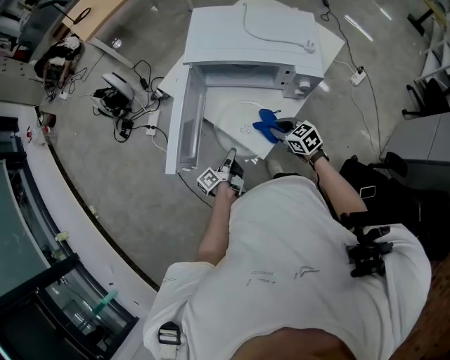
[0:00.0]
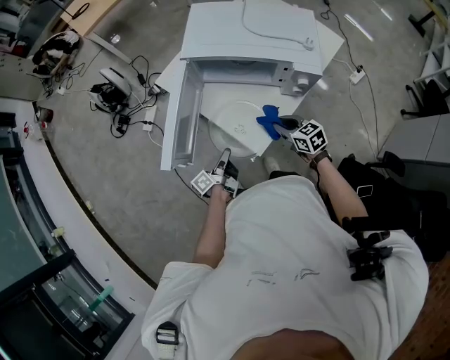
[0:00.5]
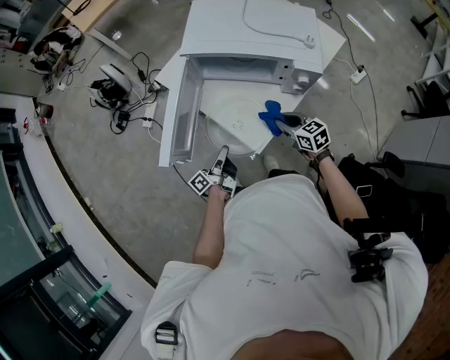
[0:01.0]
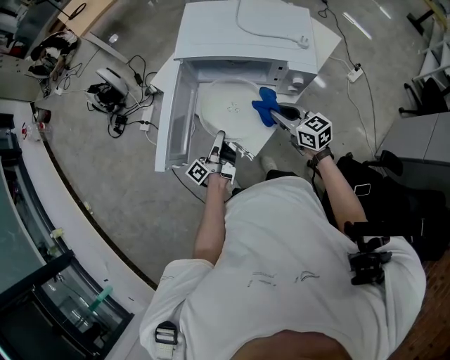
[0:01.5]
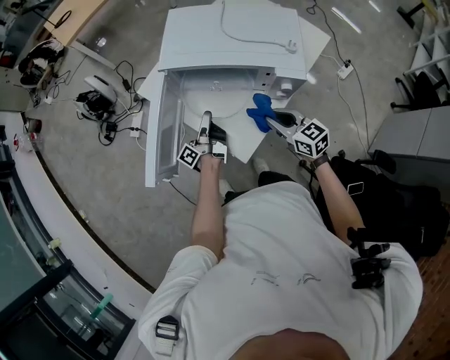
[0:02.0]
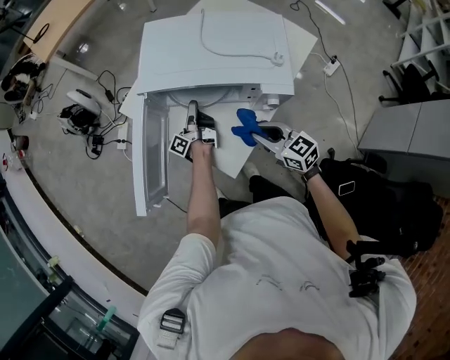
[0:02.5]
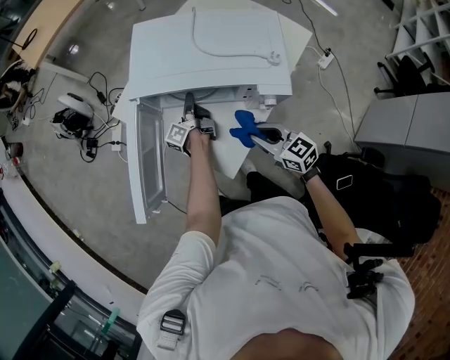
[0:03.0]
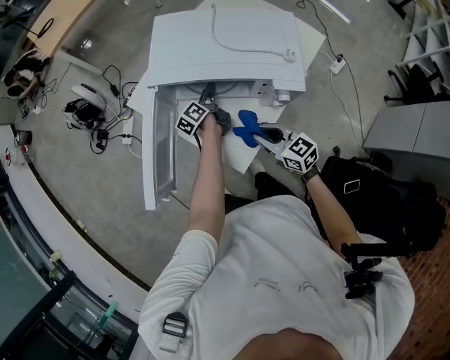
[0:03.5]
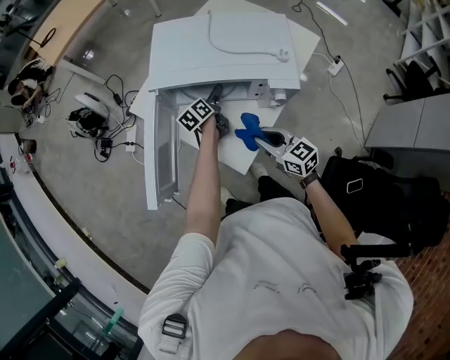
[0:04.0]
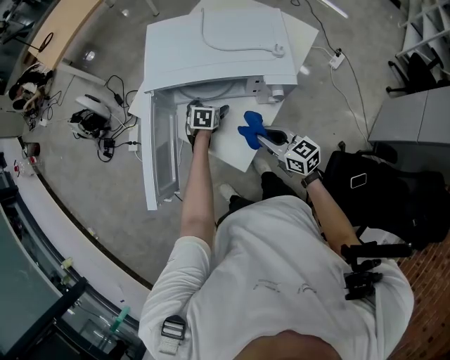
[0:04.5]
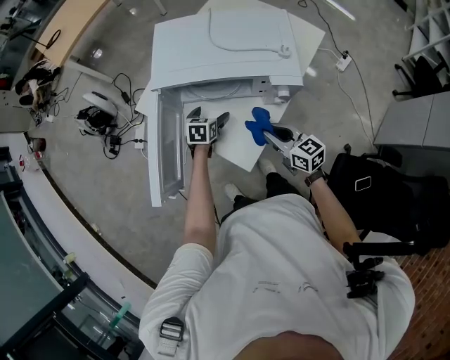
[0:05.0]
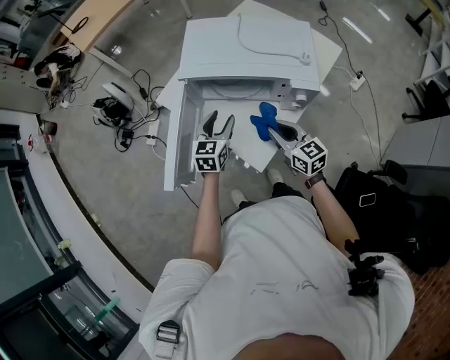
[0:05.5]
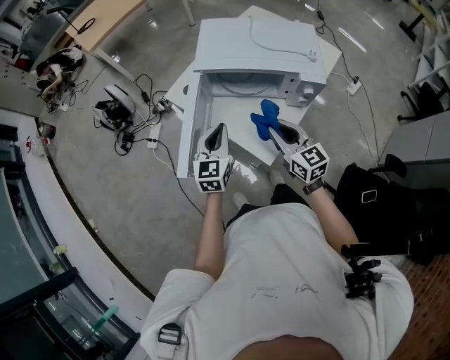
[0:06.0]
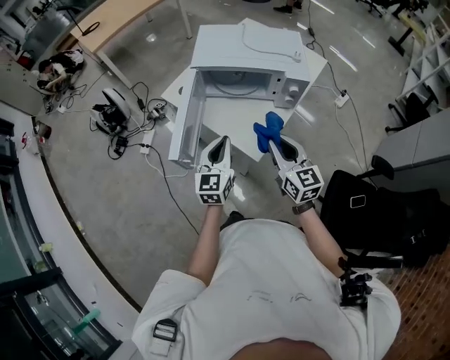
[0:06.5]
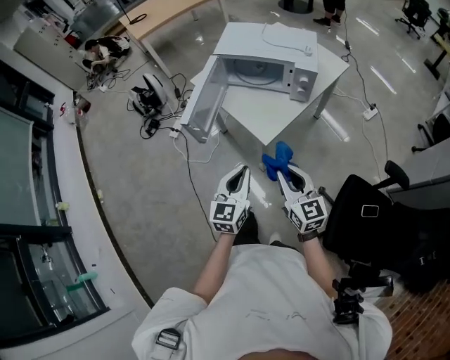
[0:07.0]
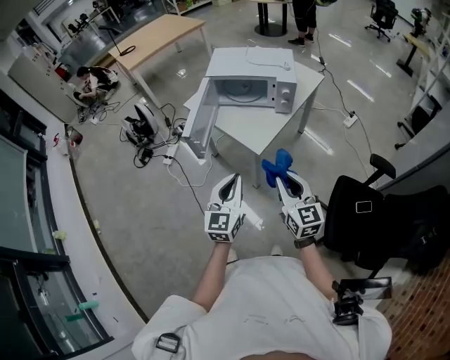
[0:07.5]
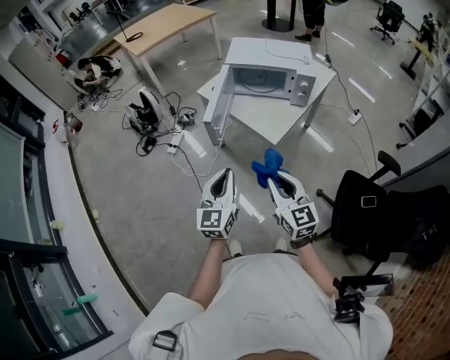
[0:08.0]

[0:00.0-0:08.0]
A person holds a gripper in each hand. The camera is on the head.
0:00.0 to 0:02.0: The right gripper heads upward and to the right, covering some 10 cm; the left gripper moves forward and upward, some 15 cm, and swivels about 20 degrees.
0:02.0 to 0:04.0: The left gripper moves forward and to the right, about 15 cm, points its fingers roughly 40 degrees further downward, and opens its fingers.
0:04.0 to 0:06.0: The left gripper shifts roughly 30 cm backward, upward and to the left, twists some 50 degrees clockwise, seen from behind, and closes; the right gripper heads upward and to the left, covering about 10 cm.
0:06.0 to 0:08.0: The two grippers go approximately 35 cm backward.

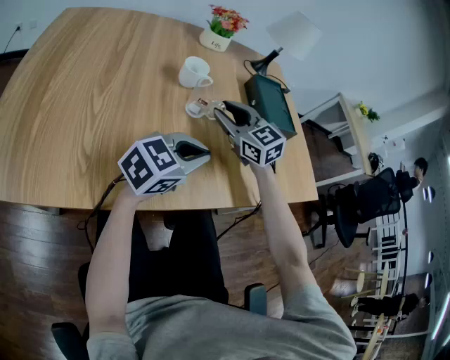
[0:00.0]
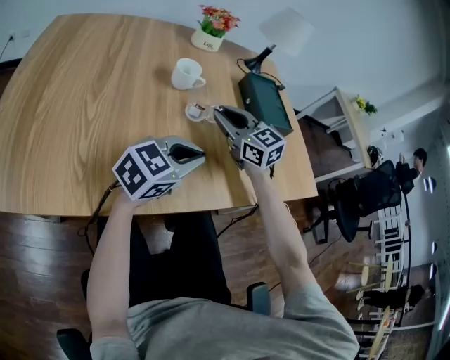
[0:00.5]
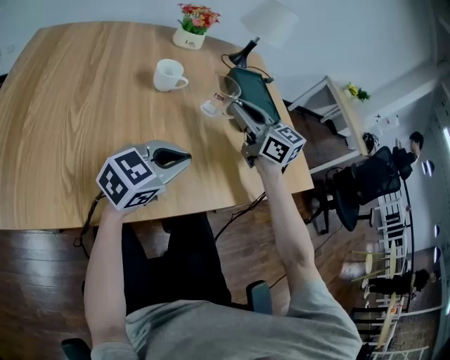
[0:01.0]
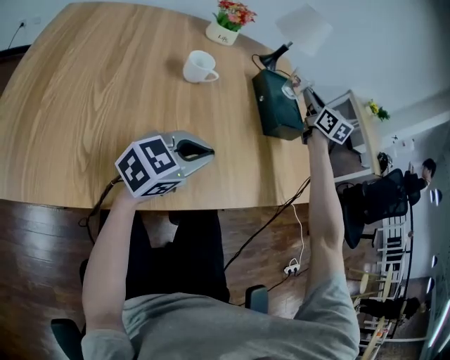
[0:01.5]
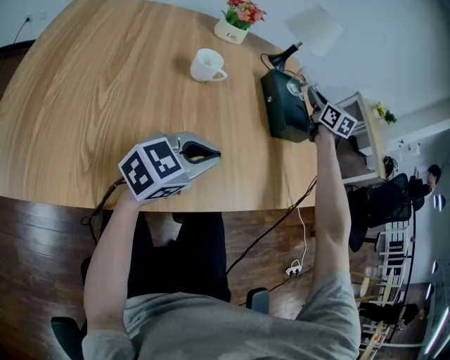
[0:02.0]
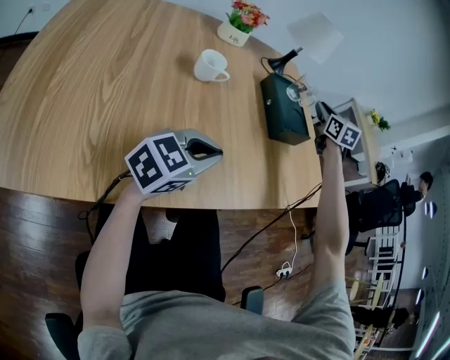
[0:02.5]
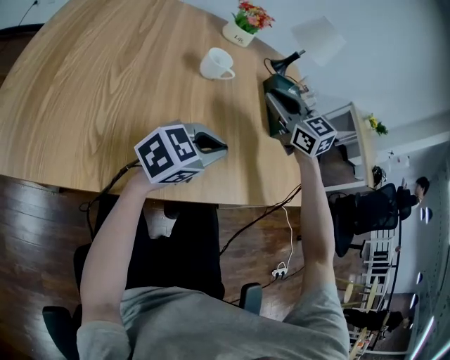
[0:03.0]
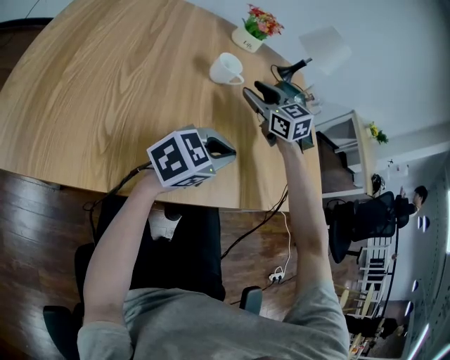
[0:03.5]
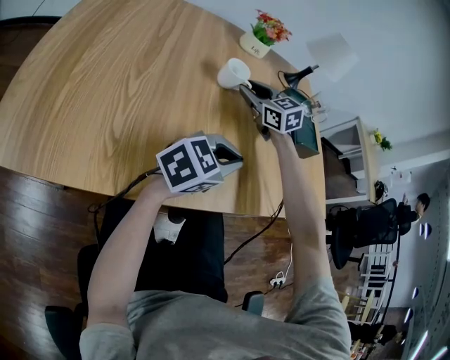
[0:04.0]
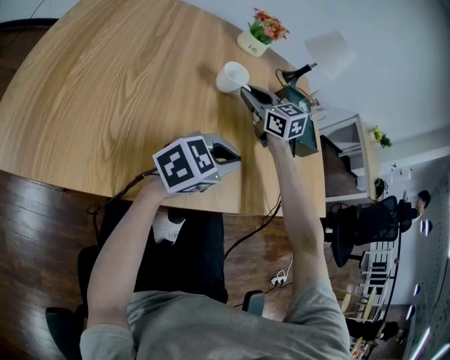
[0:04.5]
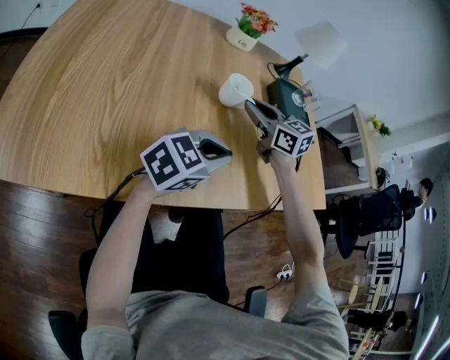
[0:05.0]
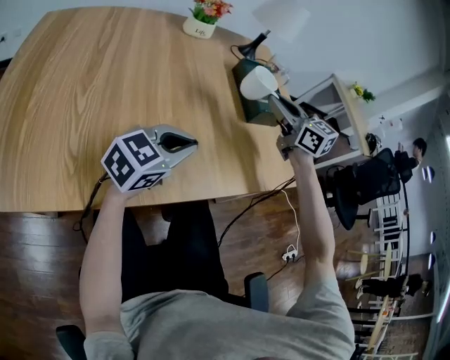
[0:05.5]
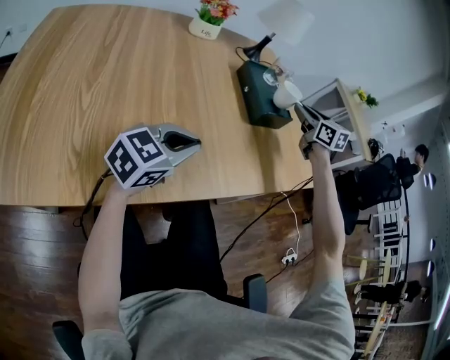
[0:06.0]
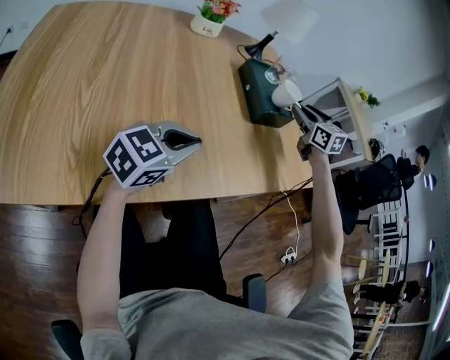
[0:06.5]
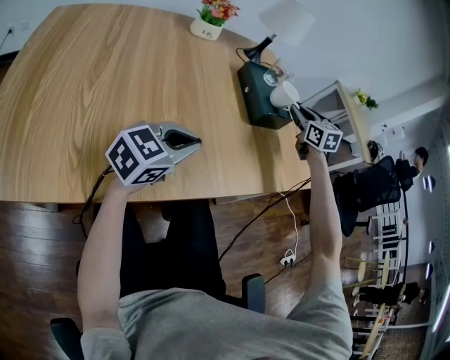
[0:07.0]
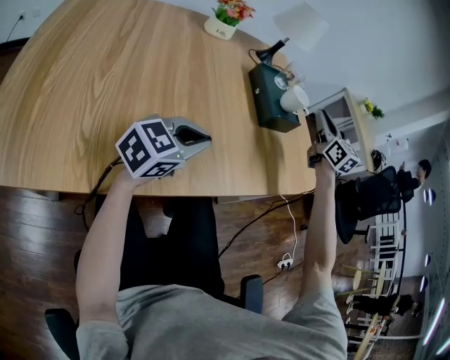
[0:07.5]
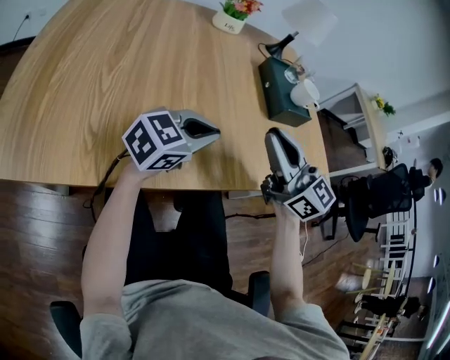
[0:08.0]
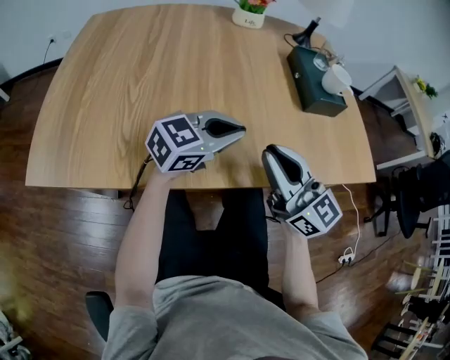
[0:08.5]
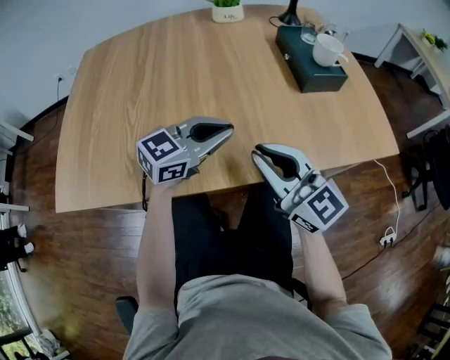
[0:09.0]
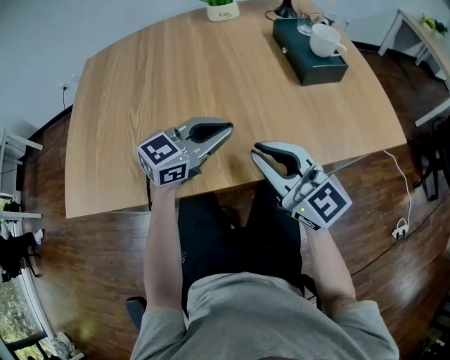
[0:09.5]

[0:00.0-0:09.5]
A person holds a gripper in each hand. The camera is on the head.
0:00.0 to 0:02.0: The right gripper travels forward and to the right by some 30 cm, and rotates roughly 30 degrees.
0:02.0 to 0:04.0: The right gripper heads to the left and backward, covering some 30 cm, and turns by some 40 degrees.
0:04.0 to 0:05.5: The right gripper heads to the right and upward, covering about 25 cm, and changes its angle by about 30 degrees.
0:05.5 to 0:07.5: The right gripper moves to the right and forward, some 15 cm, and rotates some 20 degrees.
0:07.5 to 0:09.5: The right gripper goes some 35 cm backward and to the left, and rotates about 40 degrees.

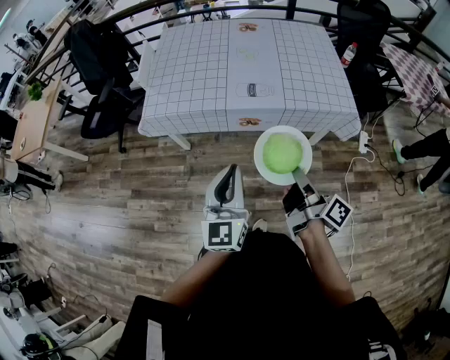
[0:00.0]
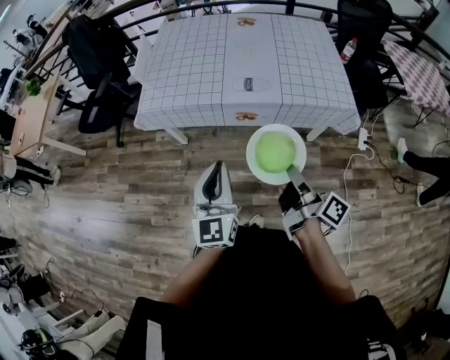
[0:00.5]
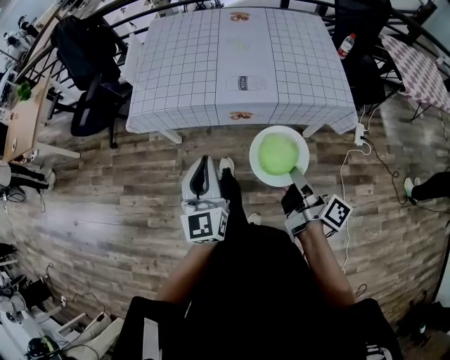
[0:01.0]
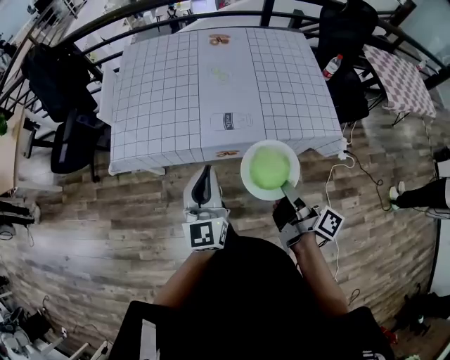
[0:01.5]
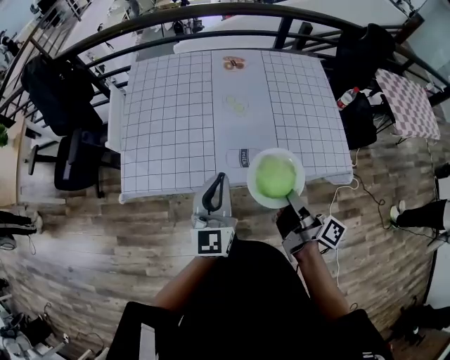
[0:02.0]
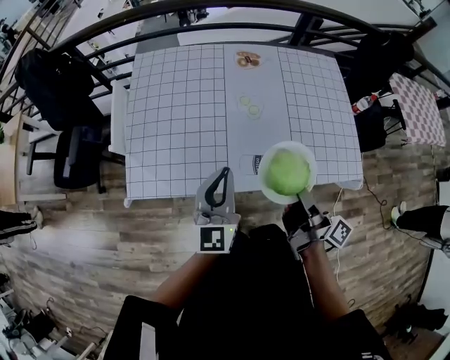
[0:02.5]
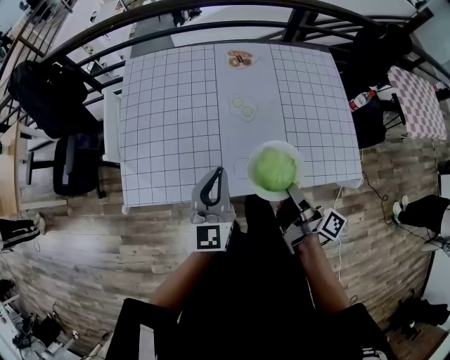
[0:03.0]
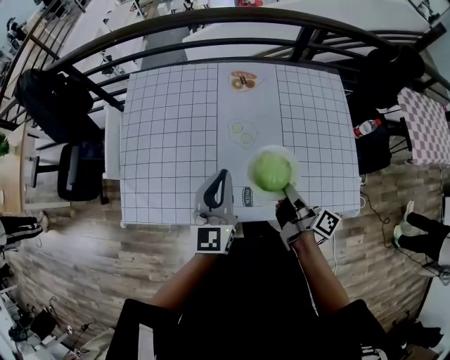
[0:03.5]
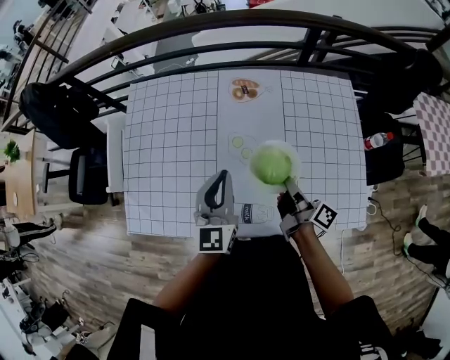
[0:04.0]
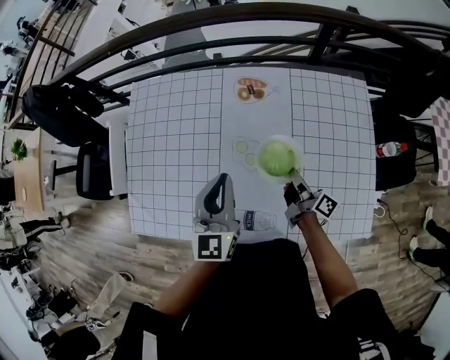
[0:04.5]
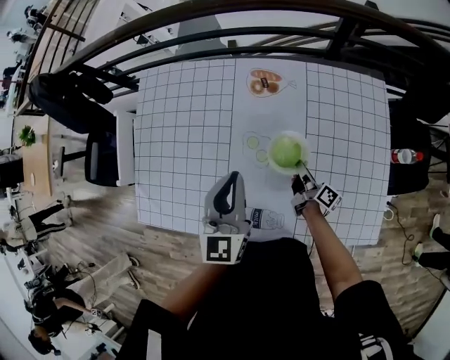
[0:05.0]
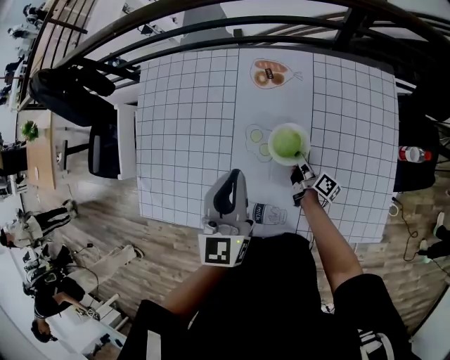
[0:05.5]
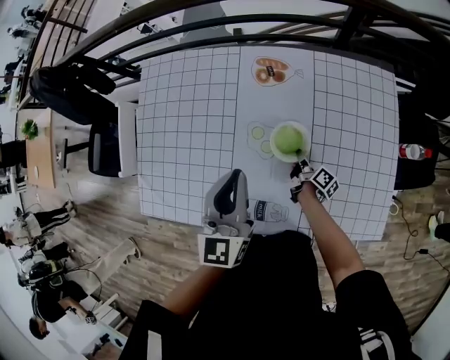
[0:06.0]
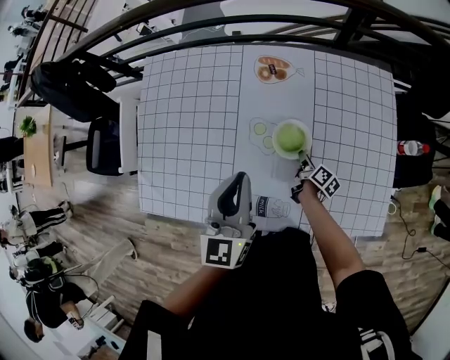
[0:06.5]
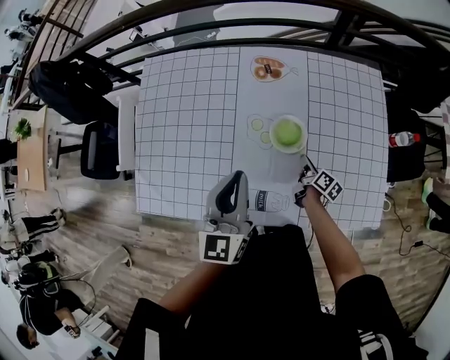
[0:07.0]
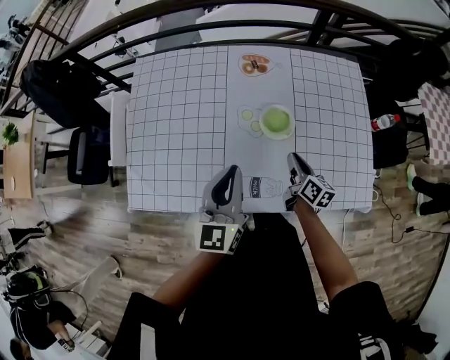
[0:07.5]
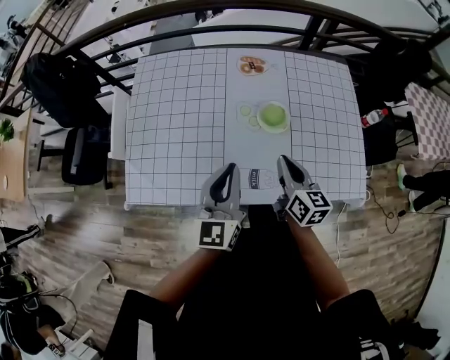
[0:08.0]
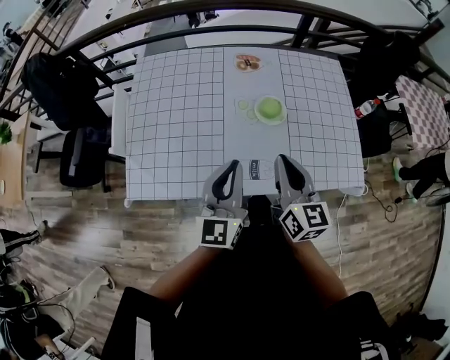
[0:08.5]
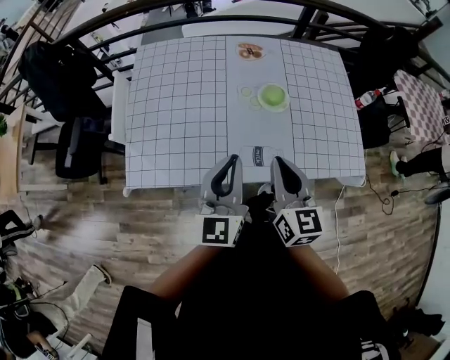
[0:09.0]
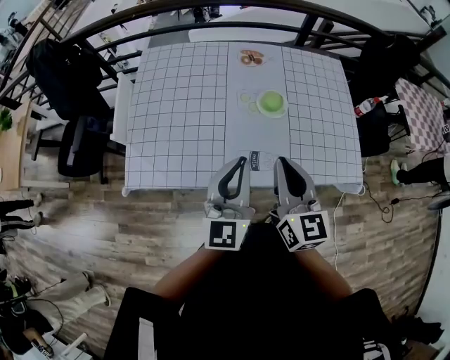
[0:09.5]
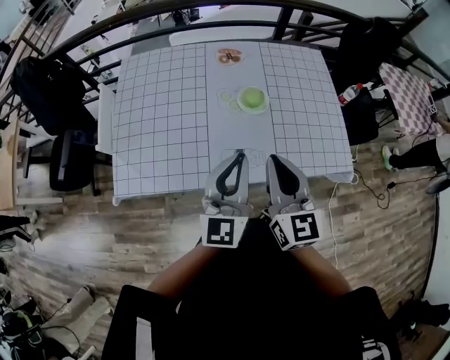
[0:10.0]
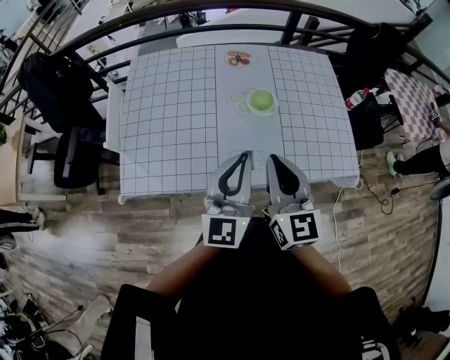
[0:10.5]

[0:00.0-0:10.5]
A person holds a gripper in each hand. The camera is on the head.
0:00.0 to 0:02.0: Both grippers move forward, roughly 30 cm.
0:02.0 to 0:04.0: The grippers both shift forward by about 30 cm.
0:04.0 to 0:06.5: The right gripper travels downward by about 25 cm, and turns by roughly 30 degrees.
0:06.5 to 0:08.5: The right gripper goes approximately 40 cm upward and backward, and rotates around the line of its fingers by roughly 60 degrees, counterclockwise from behind. Meanwhile the left gripper travels backward by some 20 cm.
0:08.5 to 0:10.5: The left gripper moves roughly 5 cm, while the right gripper goes roughly 5 cm backward.
